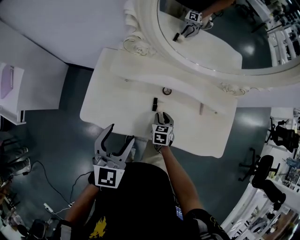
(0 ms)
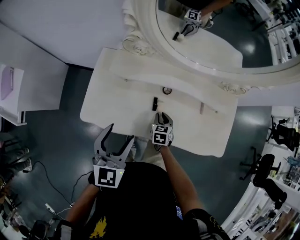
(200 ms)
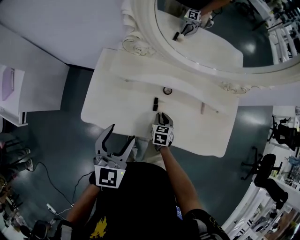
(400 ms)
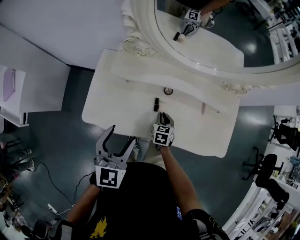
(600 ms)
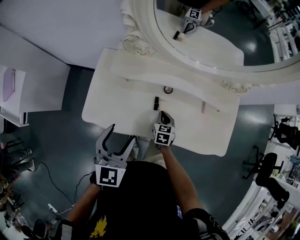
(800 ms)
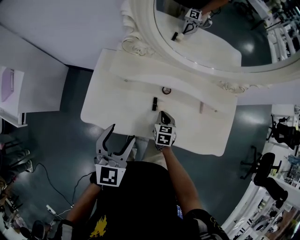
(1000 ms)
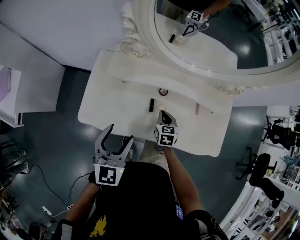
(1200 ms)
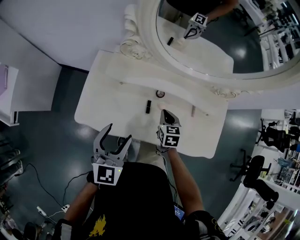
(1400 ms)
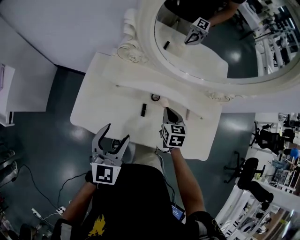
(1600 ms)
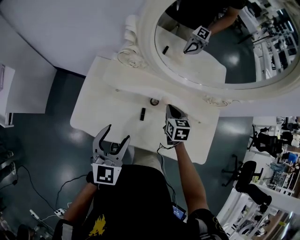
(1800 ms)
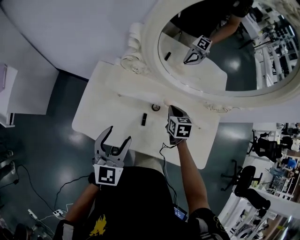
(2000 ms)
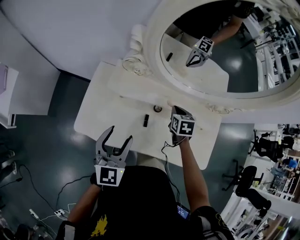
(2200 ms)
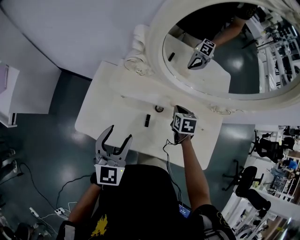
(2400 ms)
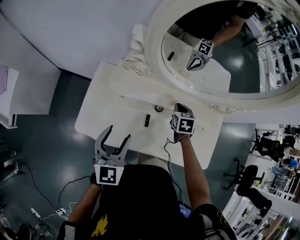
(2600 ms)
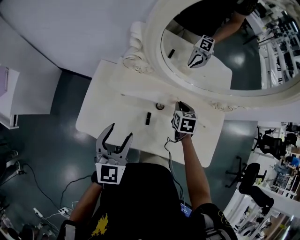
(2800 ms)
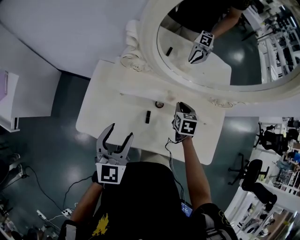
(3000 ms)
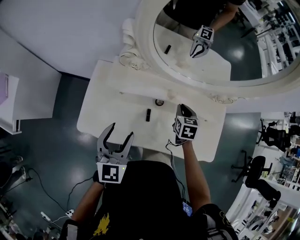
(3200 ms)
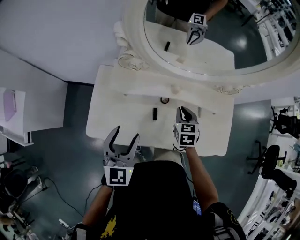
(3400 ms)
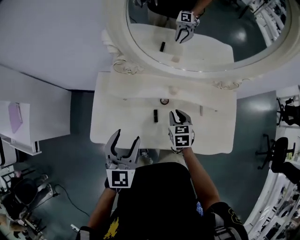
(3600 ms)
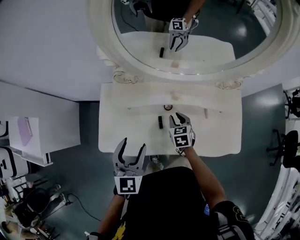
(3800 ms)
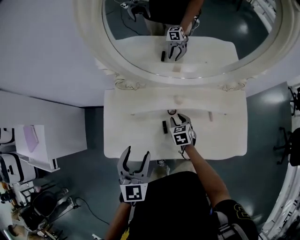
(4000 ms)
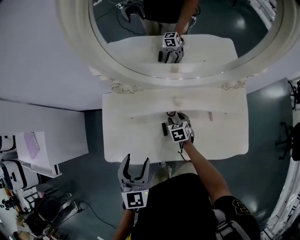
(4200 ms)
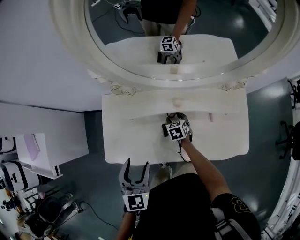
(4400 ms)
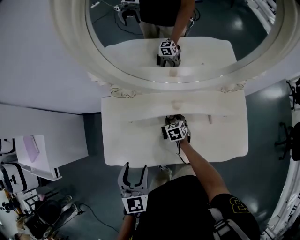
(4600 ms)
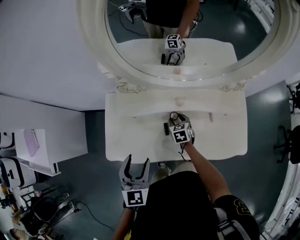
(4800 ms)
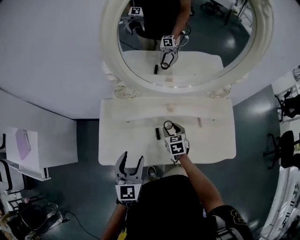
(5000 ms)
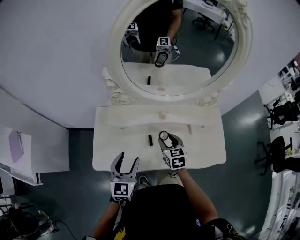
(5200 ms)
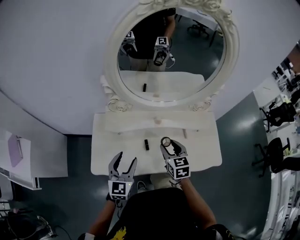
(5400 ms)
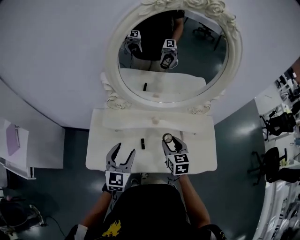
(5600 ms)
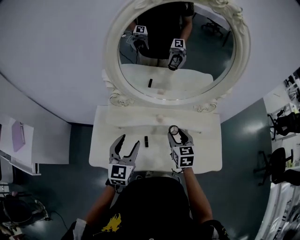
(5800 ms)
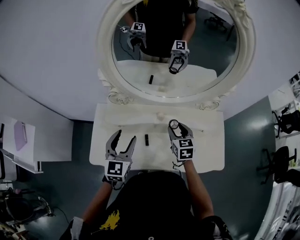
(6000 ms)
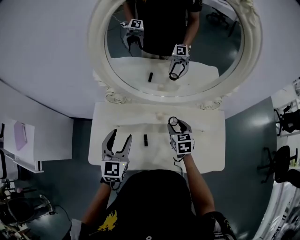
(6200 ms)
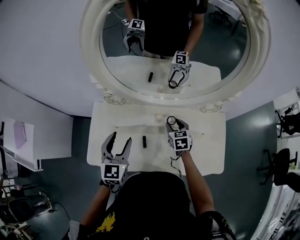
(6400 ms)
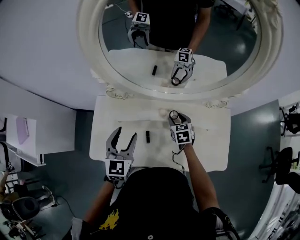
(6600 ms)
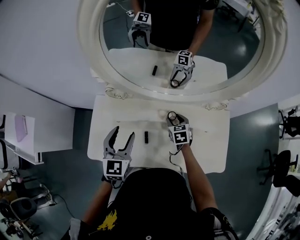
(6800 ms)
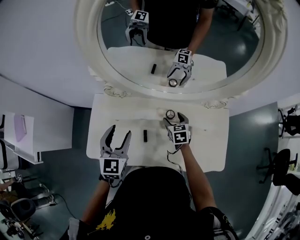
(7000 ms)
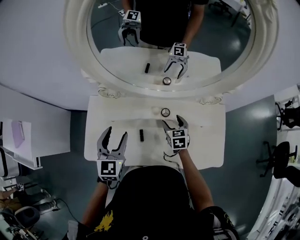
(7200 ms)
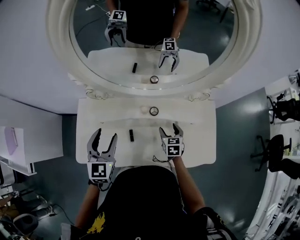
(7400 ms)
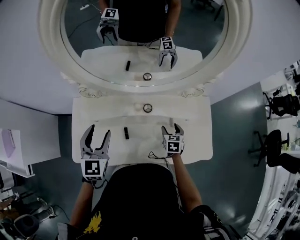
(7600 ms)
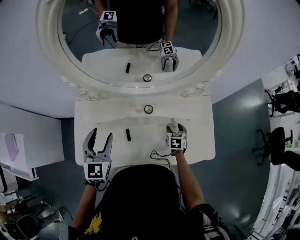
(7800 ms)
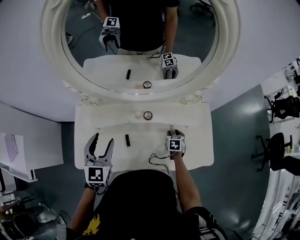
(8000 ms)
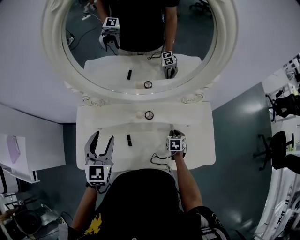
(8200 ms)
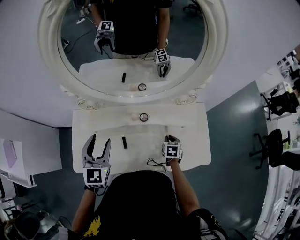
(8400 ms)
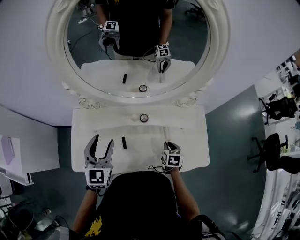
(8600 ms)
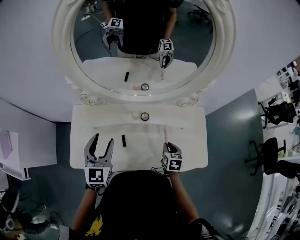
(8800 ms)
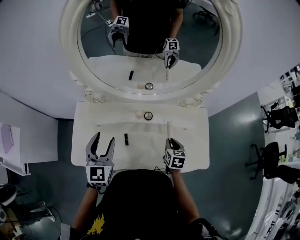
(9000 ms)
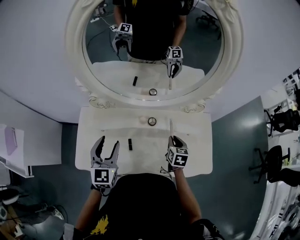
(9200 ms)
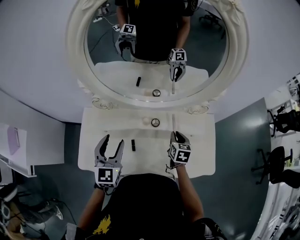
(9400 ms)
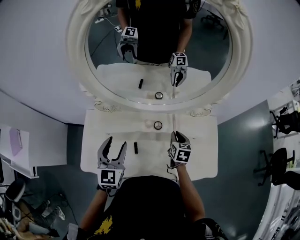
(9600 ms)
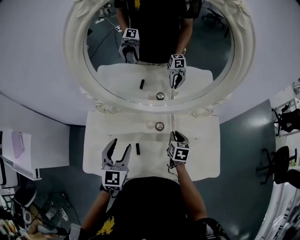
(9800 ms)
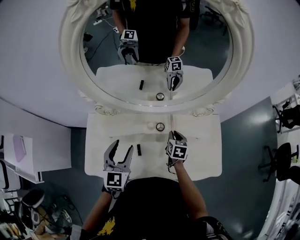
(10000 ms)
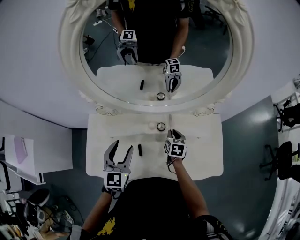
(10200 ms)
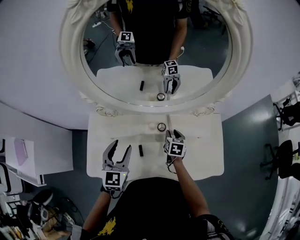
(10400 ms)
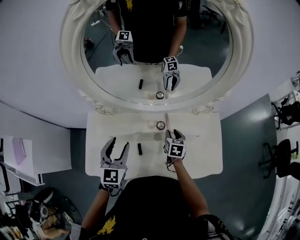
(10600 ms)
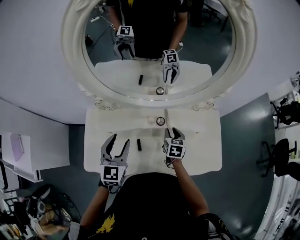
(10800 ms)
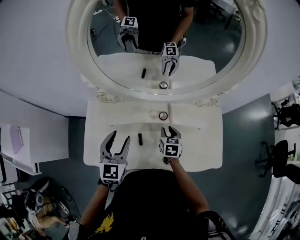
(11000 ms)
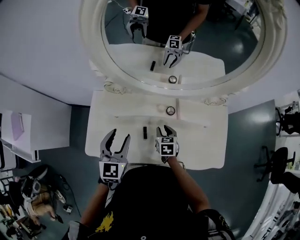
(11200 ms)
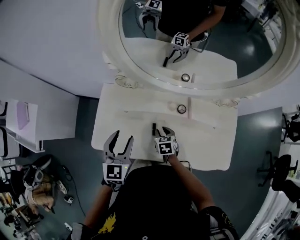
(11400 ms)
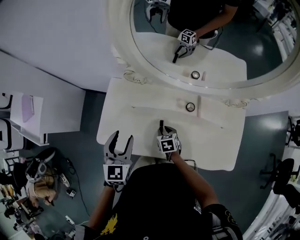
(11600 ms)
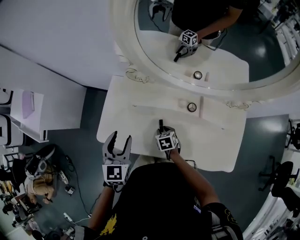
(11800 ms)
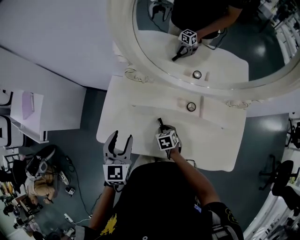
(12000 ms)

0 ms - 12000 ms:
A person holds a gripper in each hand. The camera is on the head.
0 ms - 1600 ms: The right gripper heads upward and forward, covering about 15 cm.
1600 ms - 3000 ms: The left gripper shifts by some 5 cm, while the right gripper is displaced forward by roughly 10 cm.
3000 ms - 4400 ms: The right gripper is displaced downward by approximately 15 cm, and opens up.
4400 ms - 6000 ms: The left gripper shifts approximately 5 cm forward. The right gripper moves upward and to the right, roughly 25 cm, and swivels approximately 20 degrees.
6000 ms - 7600 ms: The right gripper shifts approximately 20 cm downward and to the right.
7600 ms - 9000 ms: The right gripper goes about 5 cm upward, and closes.
9000 ms - 10400 ms: The right gripper is displaced forward and to the left by some 15 cm.
10400 ms - 12000 ms: The left gripper shifts by some 15 cm, while the right gripper shifts by about 25 cm, and rotates approximately 40 degrees.

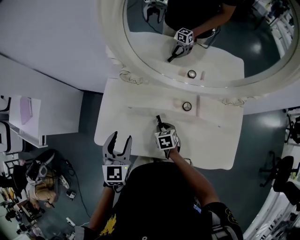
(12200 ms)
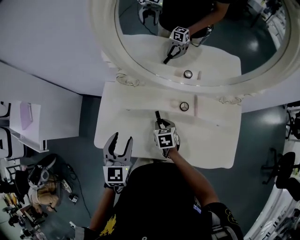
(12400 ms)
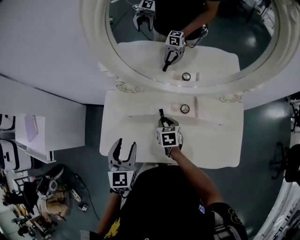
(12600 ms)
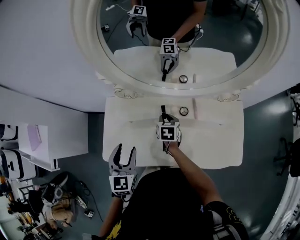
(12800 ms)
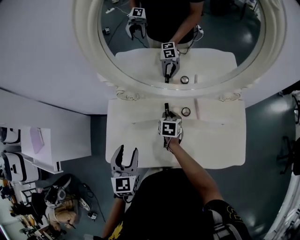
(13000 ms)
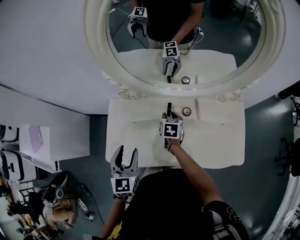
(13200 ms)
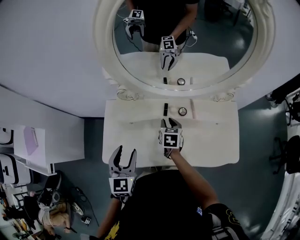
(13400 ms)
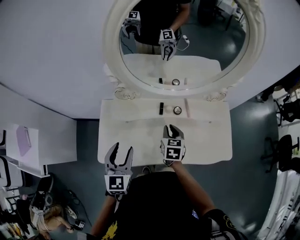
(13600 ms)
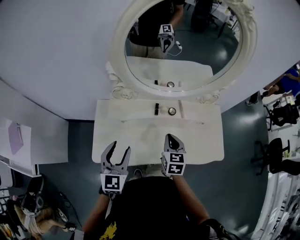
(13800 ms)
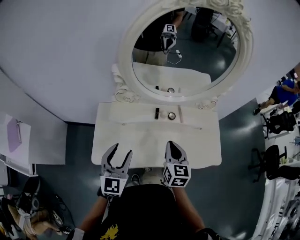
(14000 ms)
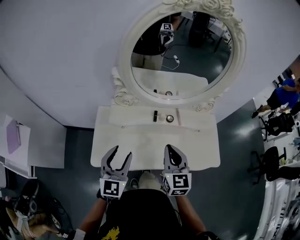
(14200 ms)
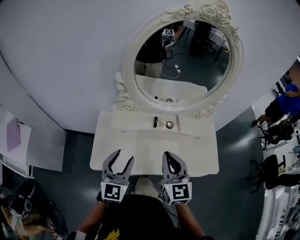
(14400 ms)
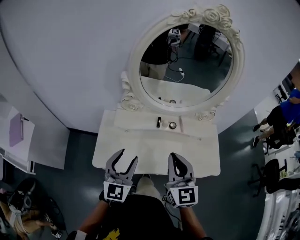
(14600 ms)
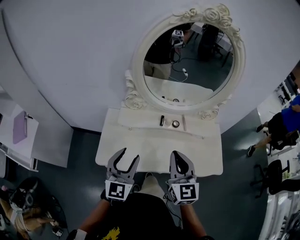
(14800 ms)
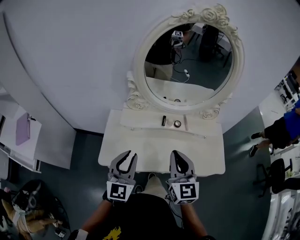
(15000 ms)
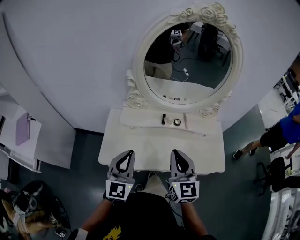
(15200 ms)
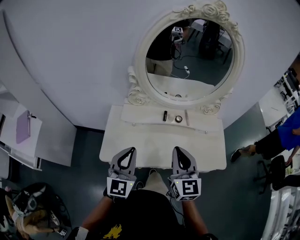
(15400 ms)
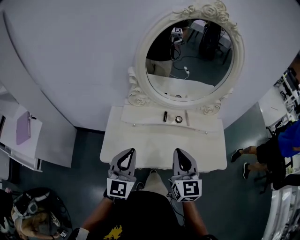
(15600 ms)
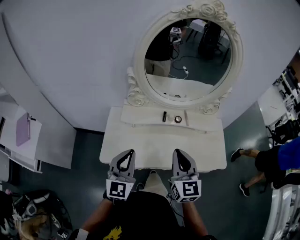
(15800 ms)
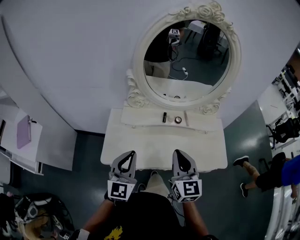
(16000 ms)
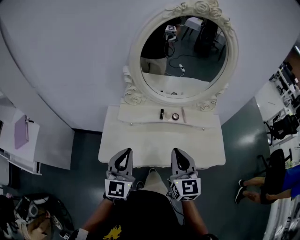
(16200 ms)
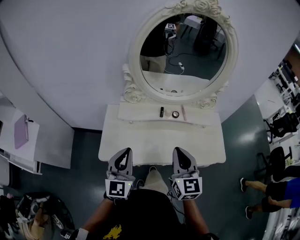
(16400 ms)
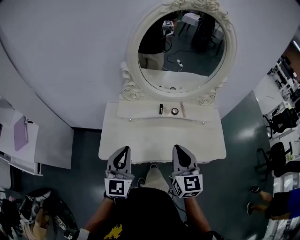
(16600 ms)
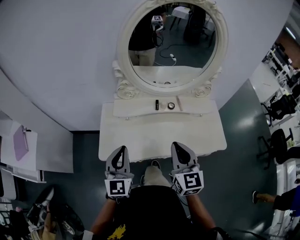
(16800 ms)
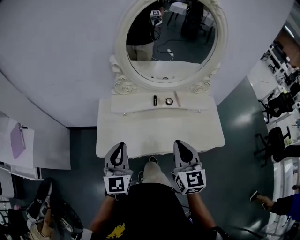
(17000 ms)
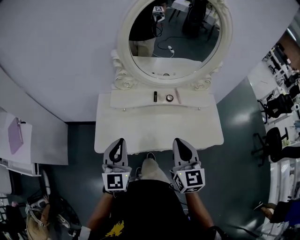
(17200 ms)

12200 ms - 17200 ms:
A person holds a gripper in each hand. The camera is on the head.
12200 ms - 13800 ms: The left gripper travels upward by roughly 5 cm; the right gripper moves upward, about 20 cm, and swivels approximately 40 degrees.
13800 ms - 15600 ms: The right gripper heads upward and backward, covering about 25 cm, and changes its angle by about 30 degrees. The left gripper shifts roughly 15 cm backward and upward, and closes its fingers.
15600 ms - 17200 ms: The grippers stay close to where they were, moving slightly.

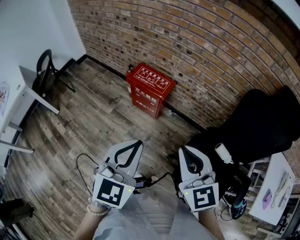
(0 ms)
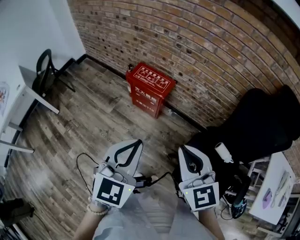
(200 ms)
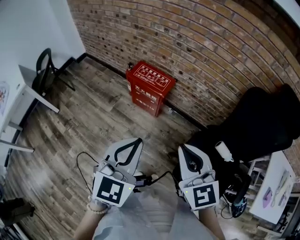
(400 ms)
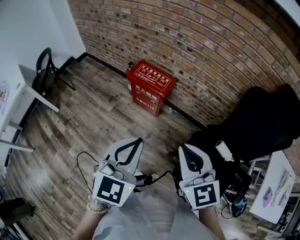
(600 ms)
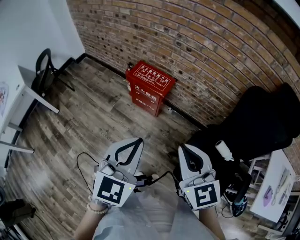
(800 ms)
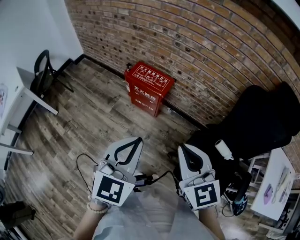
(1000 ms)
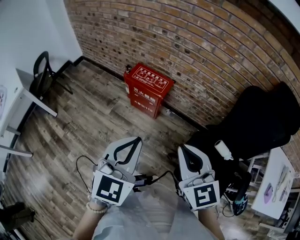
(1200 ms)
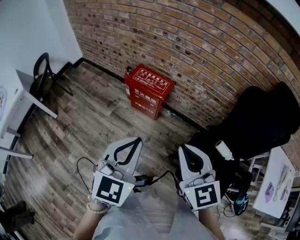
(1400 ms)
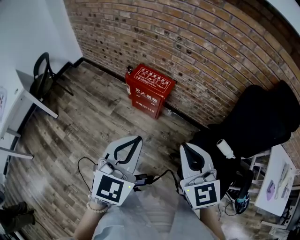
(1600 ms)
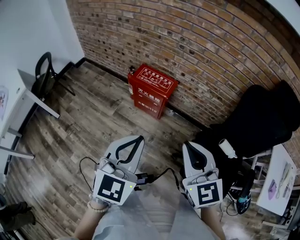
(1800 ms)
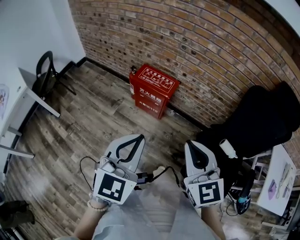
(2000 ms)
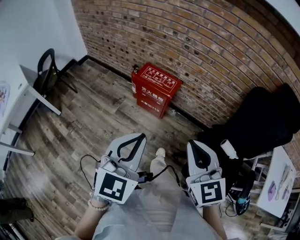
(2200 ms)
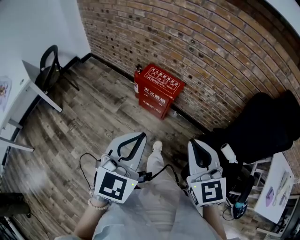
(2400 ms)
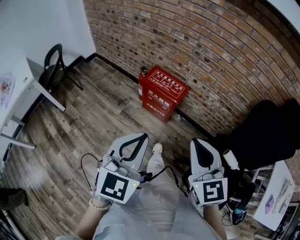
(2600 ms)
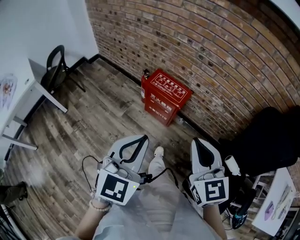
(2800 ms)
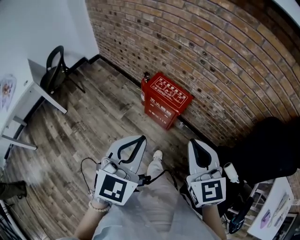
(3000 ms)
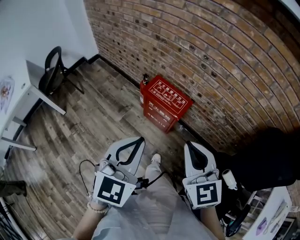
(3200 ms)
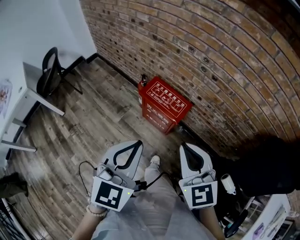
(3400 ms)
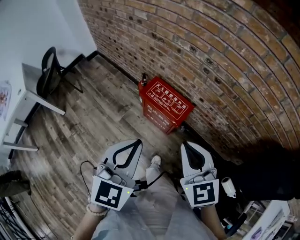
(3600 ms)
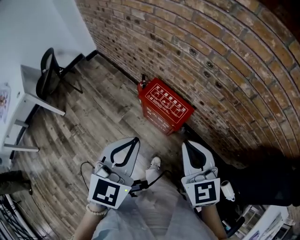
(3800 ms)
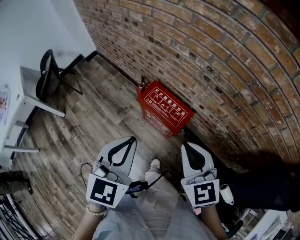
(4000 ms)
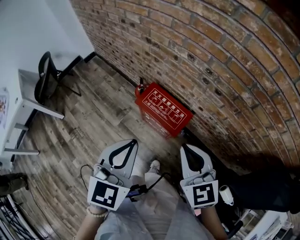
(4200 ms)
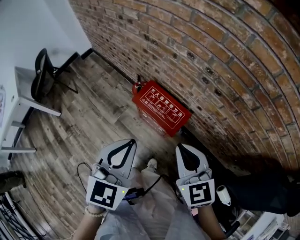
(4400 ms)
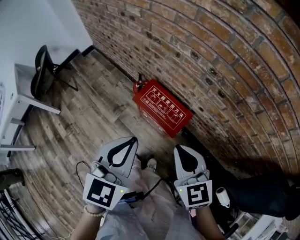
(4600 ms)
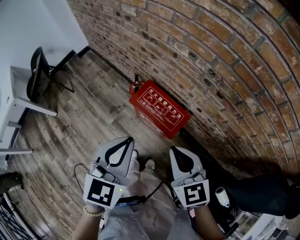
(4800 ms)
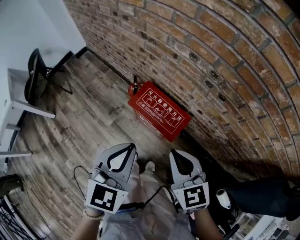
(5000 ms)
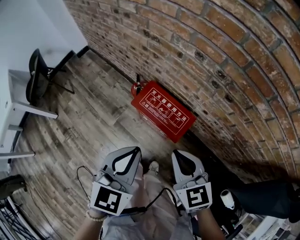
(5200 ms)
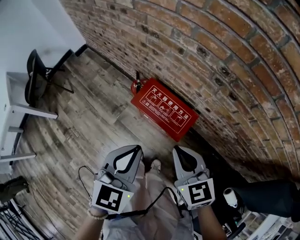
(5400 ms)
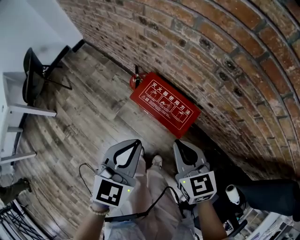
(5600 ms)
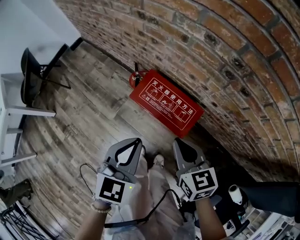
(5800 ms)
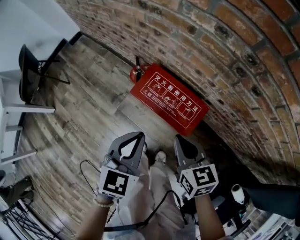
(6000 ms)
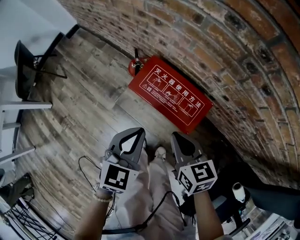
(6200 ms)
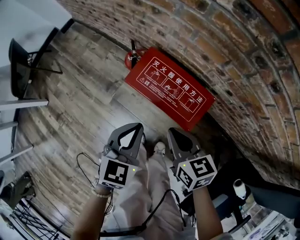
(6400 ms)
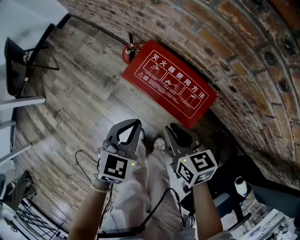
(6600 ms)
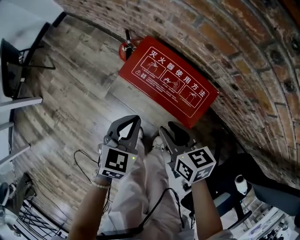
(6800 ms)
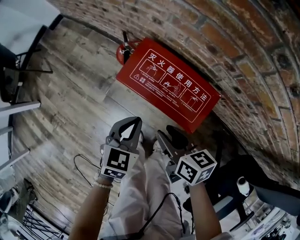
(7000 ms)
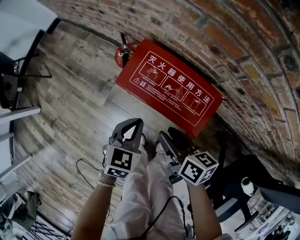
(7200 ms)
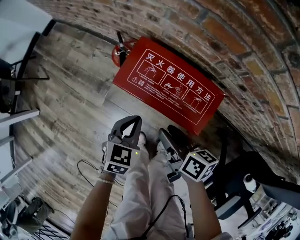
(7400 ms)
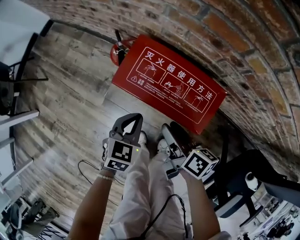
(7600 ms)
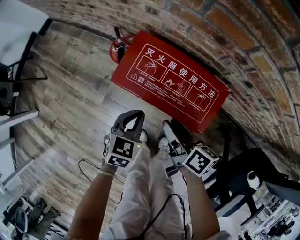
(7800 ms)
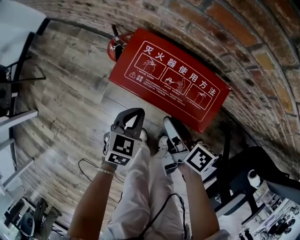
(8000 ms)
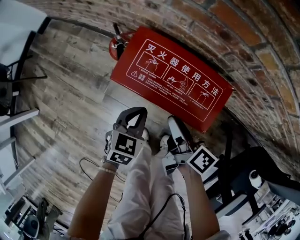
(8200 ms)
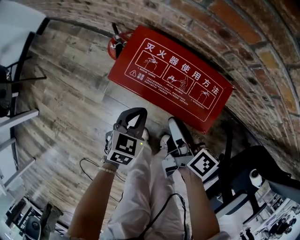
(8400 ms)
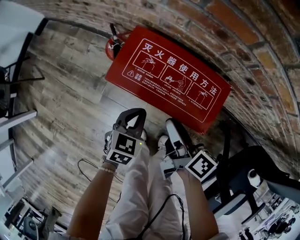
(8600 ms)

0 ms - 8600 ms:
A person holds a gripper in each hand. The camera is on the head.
0 ms - 1400 ms: There are only small adjustments of the grippers.
1400 ms - 2800 ms: The left gripper heads to the left, covering roughly 5 cm, while the right gripper moves forward, roughly 5 cm.
2800 ms - 4400 ms: The two grippers go some 30 cm forward.
4400 ms - 5800 ms: The grippers both shift downward and forward by some 20 cm. The right gripper swivels roughly 20 degrees.
5800 ms - 7200 ms: The two grippers go some 25 cm downward. The right gripper turns by roughly 40 degrees, and opens its fingers.
7200 ms - 8600 ms: The left gripper goes about 10 cm downward; the right gripper rotates some 30 degrees.
